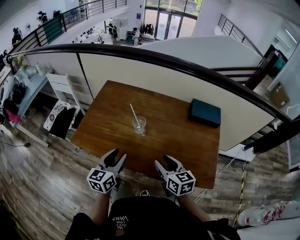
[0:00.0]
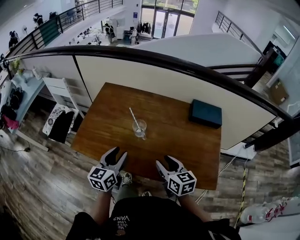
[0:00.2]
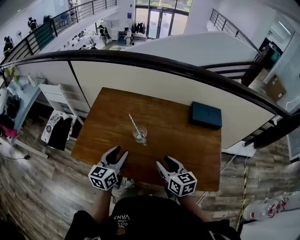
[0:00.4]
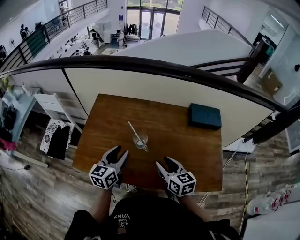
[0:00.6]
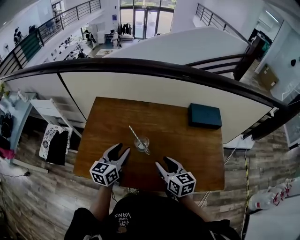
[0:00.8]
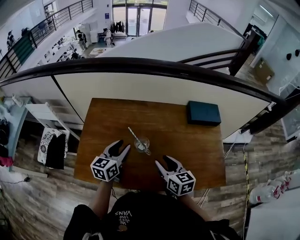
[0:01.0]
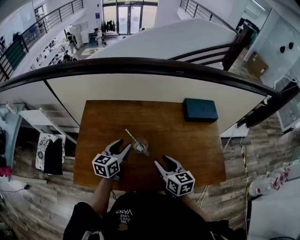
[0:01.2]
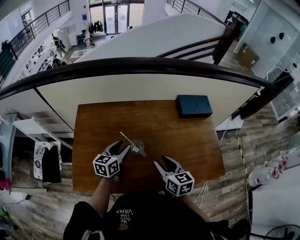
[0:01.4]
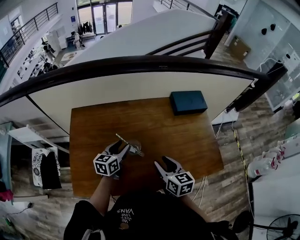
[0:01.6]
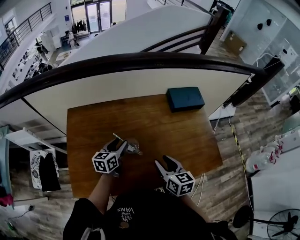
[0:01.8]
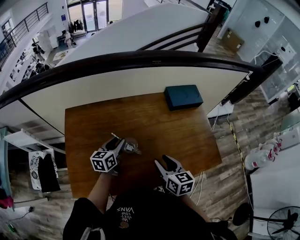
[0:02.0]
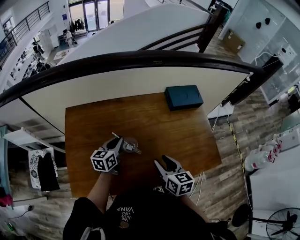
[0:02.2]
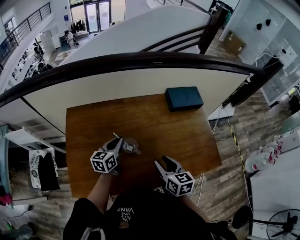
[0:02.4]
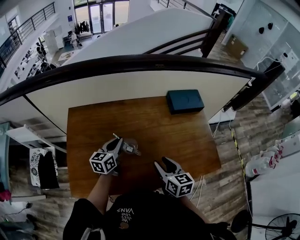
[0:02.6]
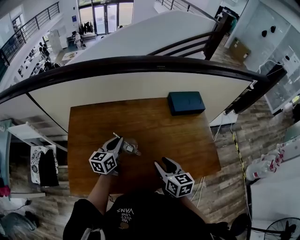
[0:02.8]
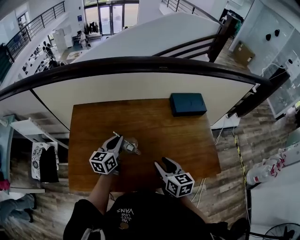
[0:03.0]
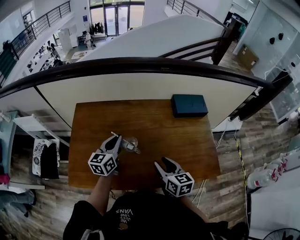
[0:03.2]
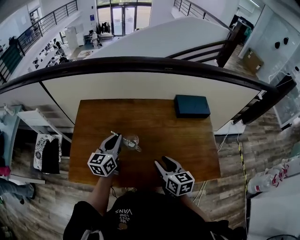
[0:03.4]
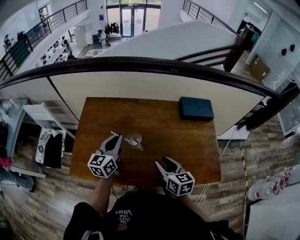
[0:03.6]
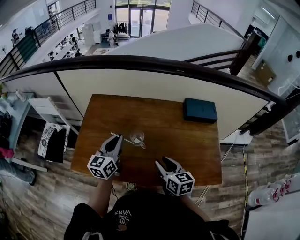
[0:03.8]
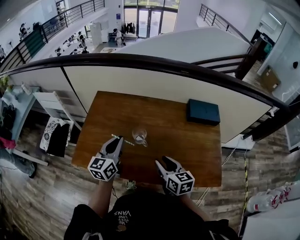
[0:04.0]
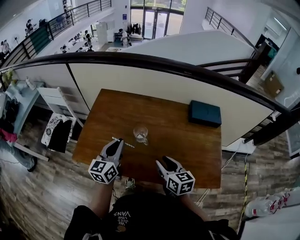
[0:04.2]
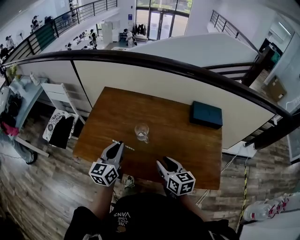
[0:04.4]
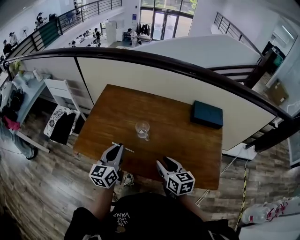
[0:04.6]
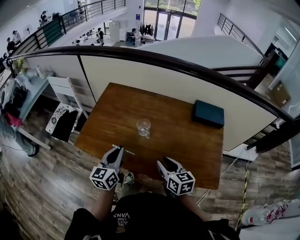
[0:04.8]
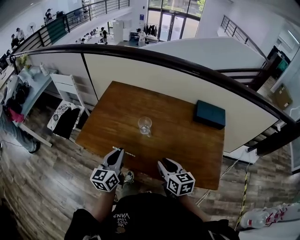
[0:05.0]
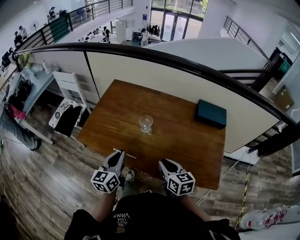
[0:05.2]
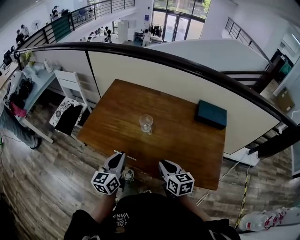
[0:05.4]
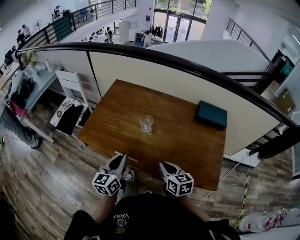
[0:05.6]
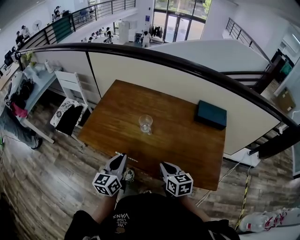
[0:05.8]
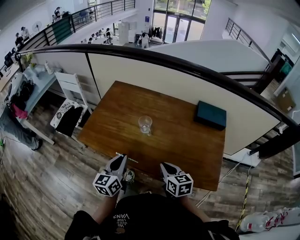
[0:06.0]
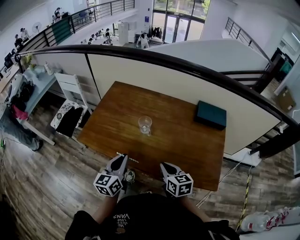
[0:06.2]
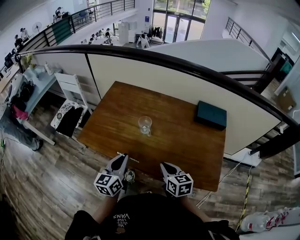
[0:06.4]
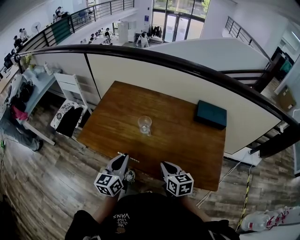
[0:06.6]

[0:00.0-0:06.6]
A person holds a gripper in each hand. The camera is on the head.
0:00.0 to 0:01.6: The right gripper changes place by some 10 cm, and turns by about 30 degrees, while the left gripper moves roughly 25 cm, and swivels some 30 degrees.
0:01.6 to 0:03.2: The left gripper travels upward by approximately 5 cm, and closes.
0:03.2 to 0:05.0: The left gripper is displaced backward by about 20 cm, and rotates about 20 degrees, while the right gripper heads backward, covering some 10 cm, and changes its angle by roughly 20 degrees.
0:05.0 to 0:06.6: The right gripper closes.

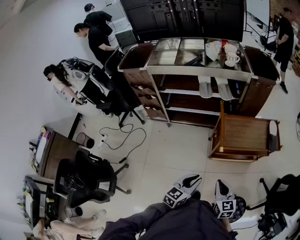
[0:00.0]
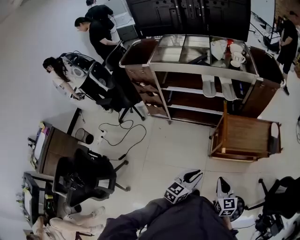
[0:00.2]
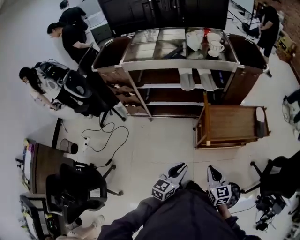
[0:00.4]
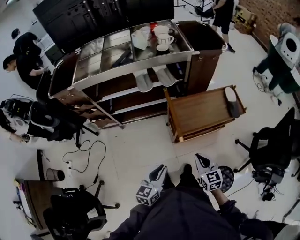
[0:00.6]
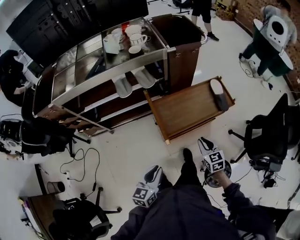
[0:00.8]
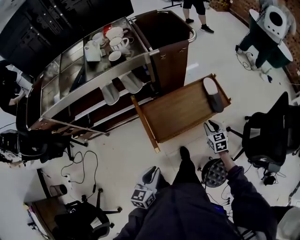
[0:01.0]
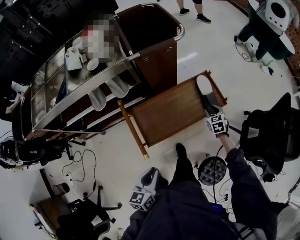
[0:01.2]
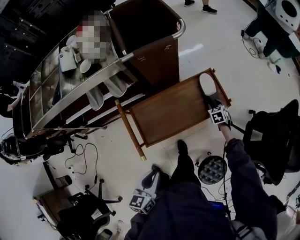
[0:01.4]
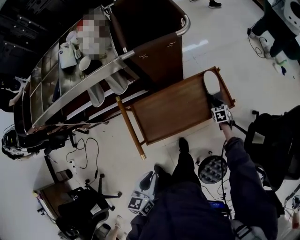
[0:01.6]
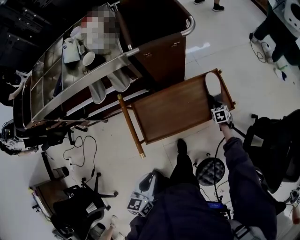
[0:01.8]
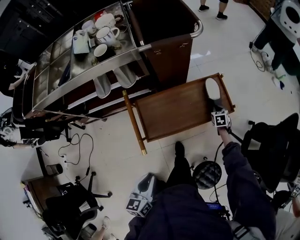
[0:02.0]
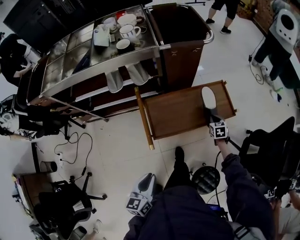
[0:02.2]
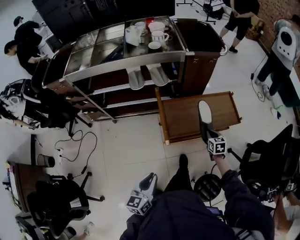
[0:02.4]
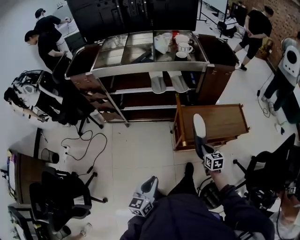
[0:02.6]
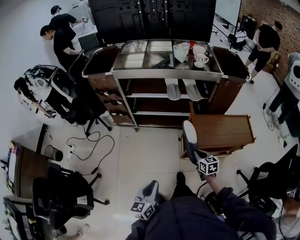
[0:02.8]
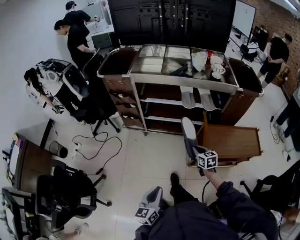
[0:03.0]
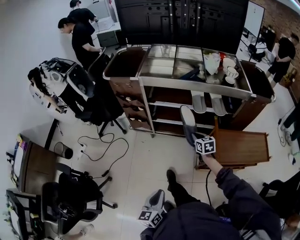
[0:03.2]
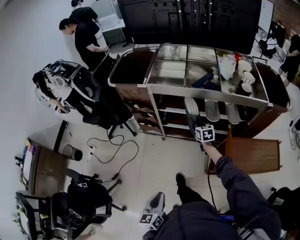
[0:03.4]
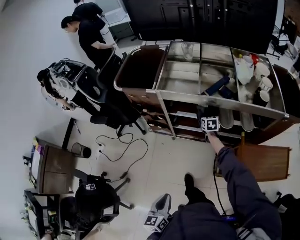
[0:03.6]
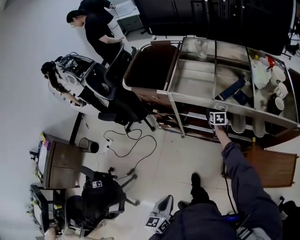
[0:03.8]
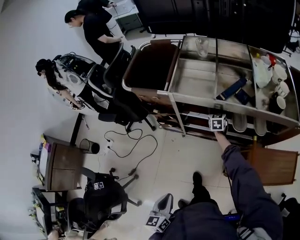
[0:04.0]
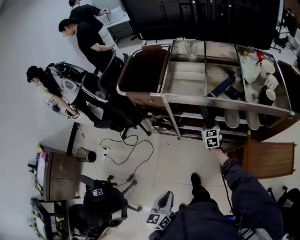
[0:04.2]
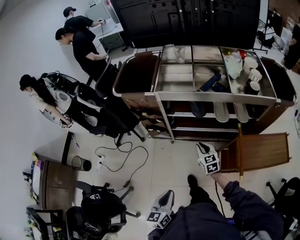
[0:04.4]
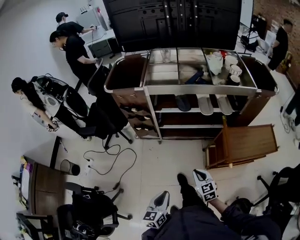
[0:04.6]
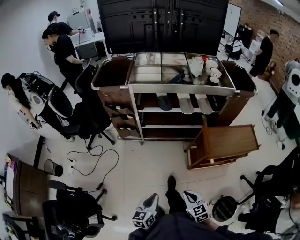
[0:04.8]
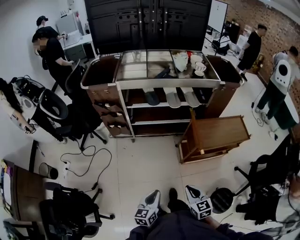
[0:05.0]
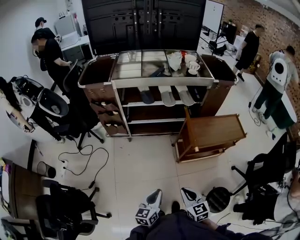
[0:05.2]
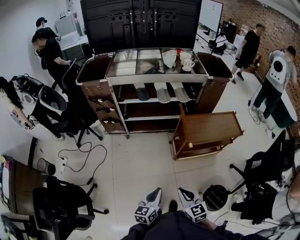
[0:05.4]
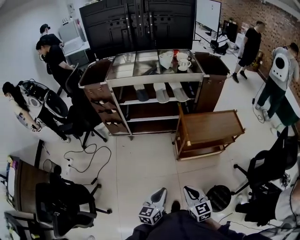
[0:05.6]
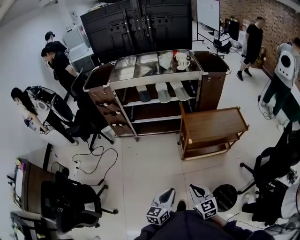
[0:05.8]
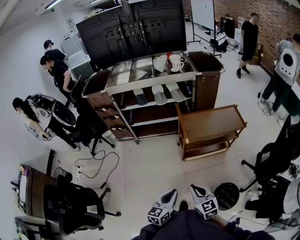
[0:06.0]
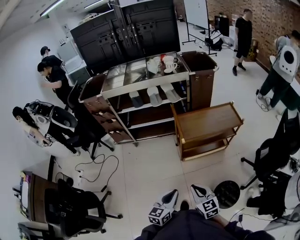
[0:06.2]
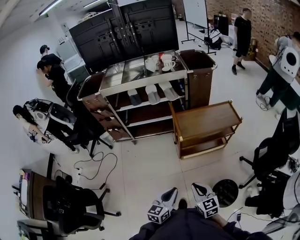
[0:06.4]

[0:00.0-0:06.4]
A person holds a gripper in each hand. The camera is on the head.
0:00.0 to 0:01.6: The right gripper goes roughly 70 cm forward, to the right and downward, tilts its fingers roughly 30 degrees downward, and opens its fingers, while the left gripper moves forward and to the right, approximately 30 cm.
0:01.6 to 0:03.2: The two grippers travel together, approximately 60 cm. The right gripper changes its angle by roughly 40 degrees, and closes its fingers, while the left gripper swivels about 40 degrees.
0:03.2 to 0:04.8: The right gripper heads backward, covering roughly 35 cm, while the left gripper heads to the left, covering roughly 5 cm, and goes forward and returns, about 15 cm each way.
0:04.8 to 0:06.4: The grippers both shift to the right and backward by about 30 cm. The left gripper changes its angle by approximately 20 degrees.

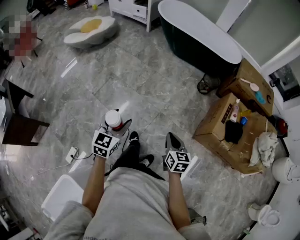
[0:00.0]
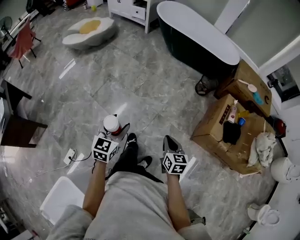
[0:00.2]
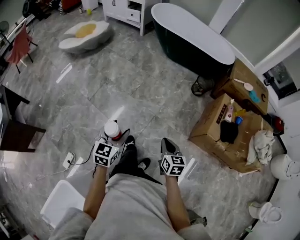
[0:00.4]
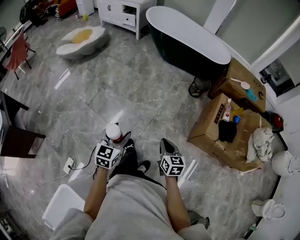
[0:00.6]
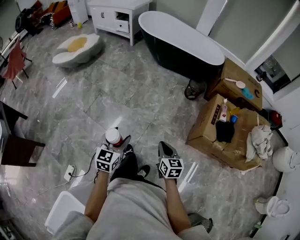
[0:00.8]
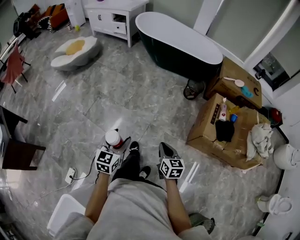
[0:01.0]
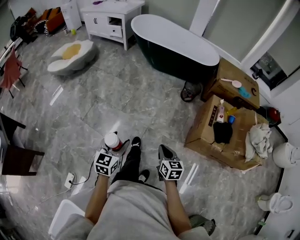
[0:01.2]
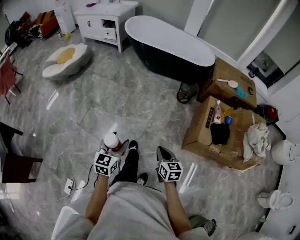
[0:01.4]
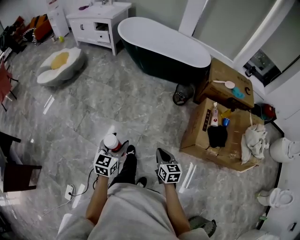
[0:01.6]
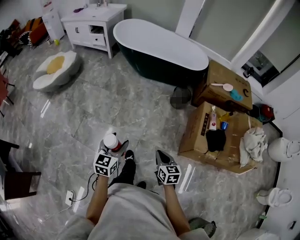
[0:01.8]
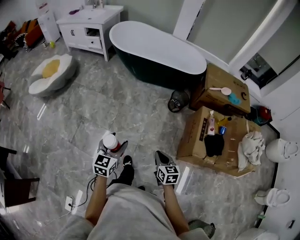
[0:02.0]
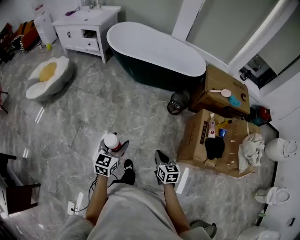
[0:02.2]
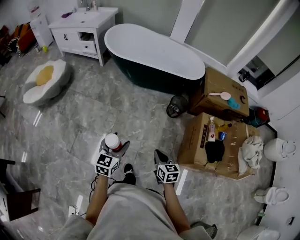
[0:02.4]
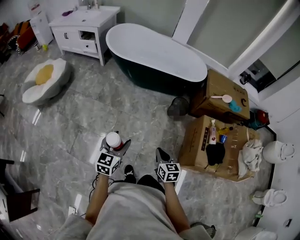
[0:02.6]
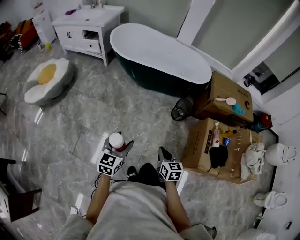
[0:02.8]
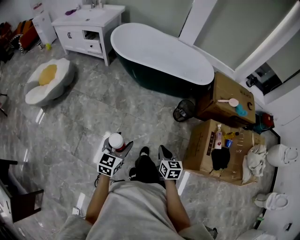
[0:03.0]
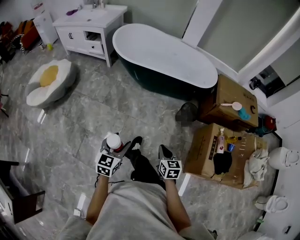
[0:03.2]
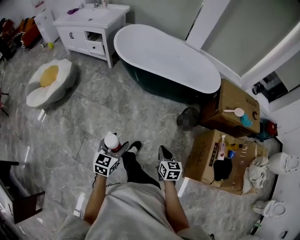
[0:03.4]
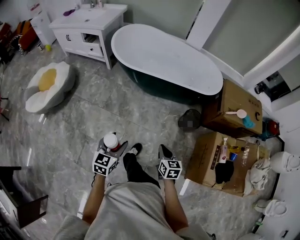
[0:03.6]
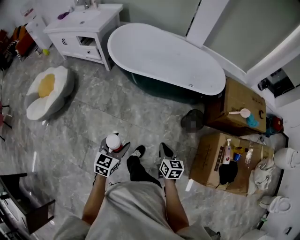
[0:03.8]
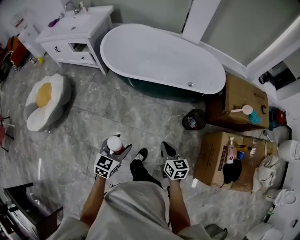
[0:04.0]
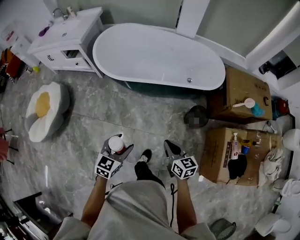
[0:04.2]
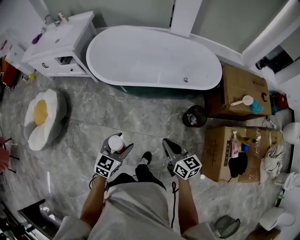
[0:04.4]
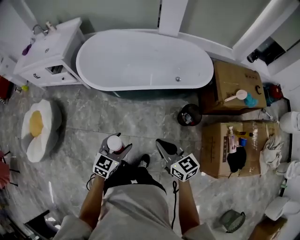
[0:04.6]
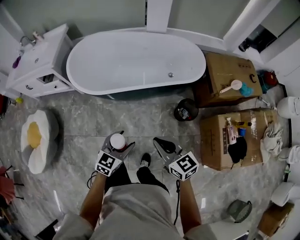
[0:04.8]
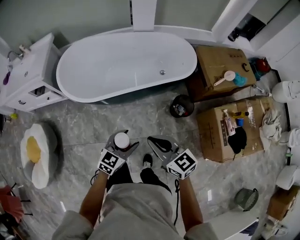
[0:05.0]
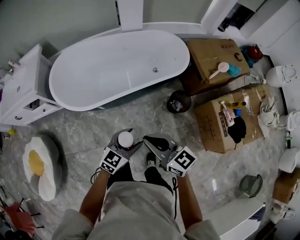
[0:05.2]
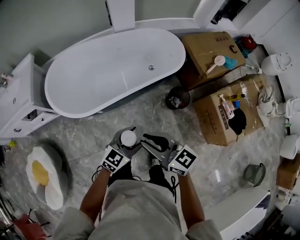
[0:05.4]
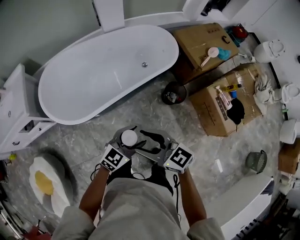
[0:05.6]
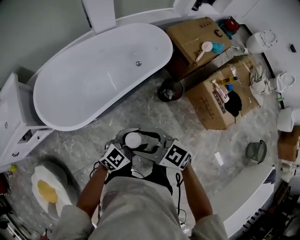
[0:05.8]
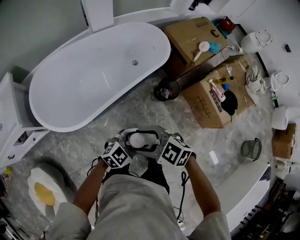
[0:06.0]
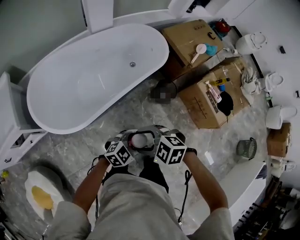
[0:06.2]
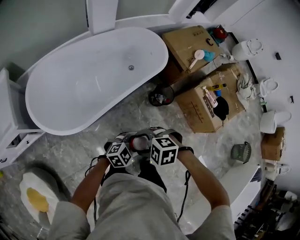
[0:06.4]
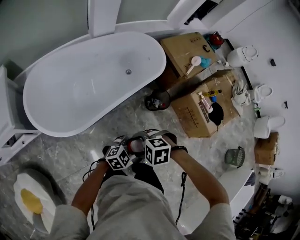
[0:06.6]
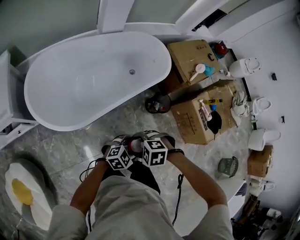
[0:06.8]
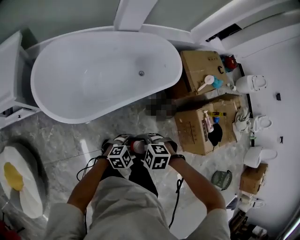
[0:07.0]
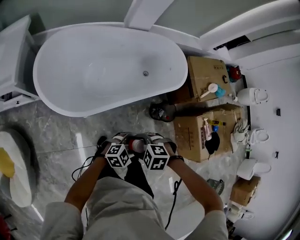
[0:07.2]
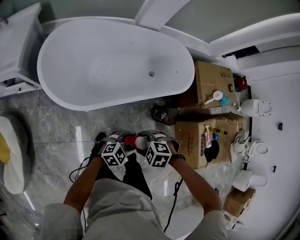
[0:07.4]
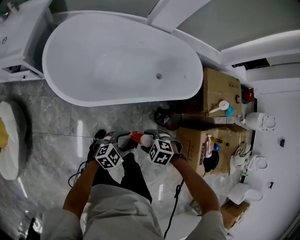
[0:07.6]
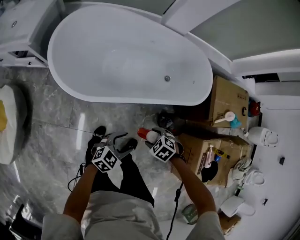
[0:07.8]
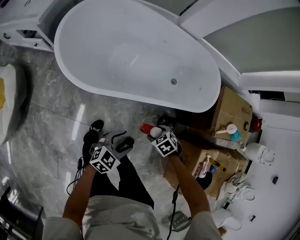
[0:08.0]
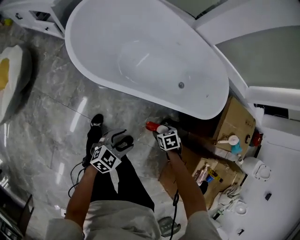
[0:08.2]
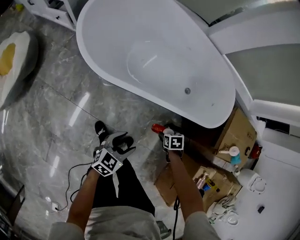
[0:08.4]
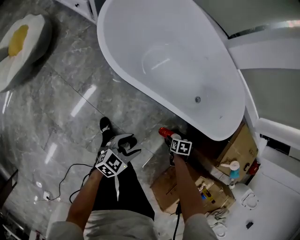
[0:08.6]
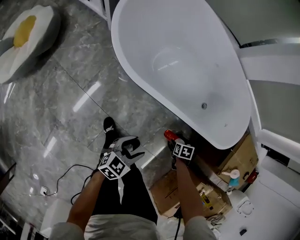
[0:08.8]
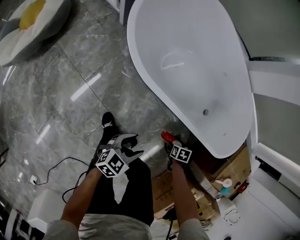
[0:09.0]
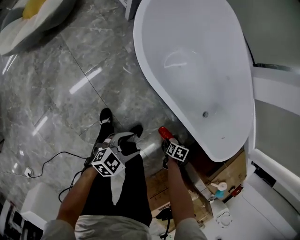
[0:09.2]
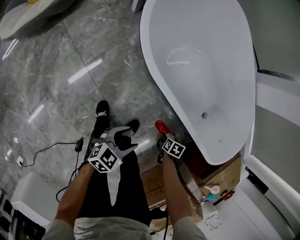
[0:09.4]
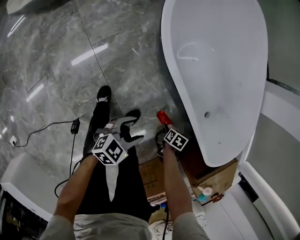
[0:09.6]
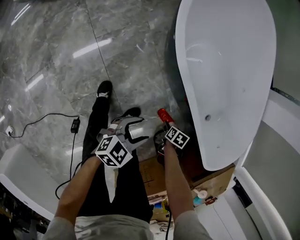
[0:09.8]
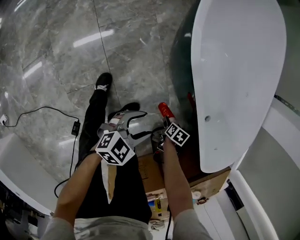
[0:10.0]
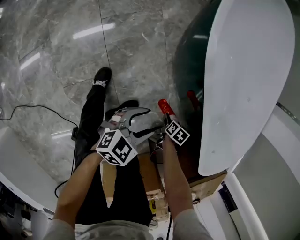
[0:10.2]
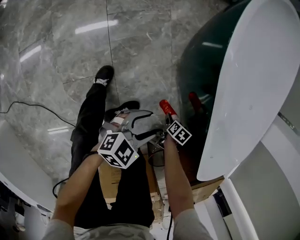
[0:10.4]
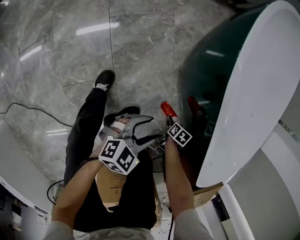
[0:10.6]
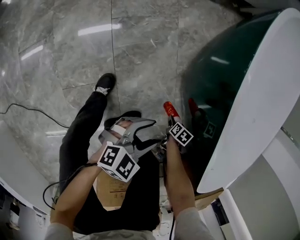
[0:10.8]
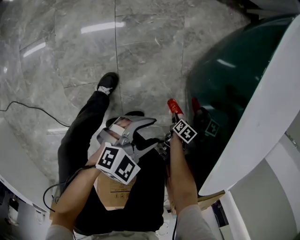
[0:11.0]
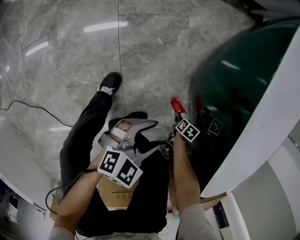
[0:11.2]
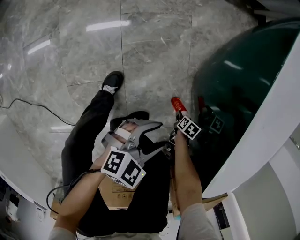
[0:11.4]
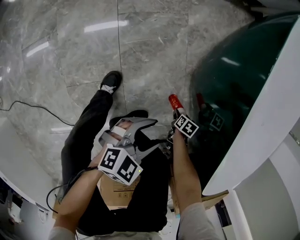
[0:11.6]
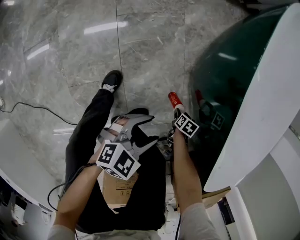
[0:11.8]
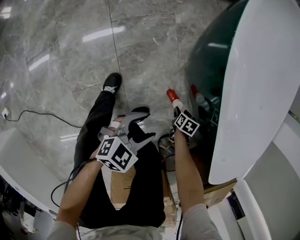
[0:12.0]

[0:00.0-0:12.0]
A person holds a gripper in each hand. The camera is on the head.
0:00.0 to 0:01.6: The left gripper moves to the right and forward, roughly 15 cm; the right gripper travels forward and to the right by some 10 cm.
0:01.6 to 0:03.0: The two grippers go about 30 cm forward.
0:03.0 to 0:04.4: Both grippers move forward, about 35 cm. The right gripper turns by roughly 20 degrees; the left gripper changes its angle by approximately 20 degrees.
0:04.4 to 0:06.0: The left gripper changes place by roughly 15 cm, and swivels about 70 degrees, while the right gripper moves about 20 cm, turns by approximately 30 degrees, and opens.
0:06.0 to 0:07.6: The right gripper moves downward, roughly 20 cm, and tips its fingers downward by roughly 40 degrees. Meanwhile the left gripper goes approximately 10 cm downward, and swivels approximately 30 degrees.
0:07.6 to 0:09.0: The right gripper is displaced downward by about 30 cm, and rolls clockwise, seen from behind, by some 40 degrees. Meanwhile the left gripper moves downward, roughly 15 cm, and rotates about 50 degrees.
0:09.0 to 0:10.4: The two grippers go about 15 cm downward. The left gripper changes its angle by about 30 degrees.
0:10.4 to 0:12.0: The right gripper travels downward and back again, about 15 cm each way.
